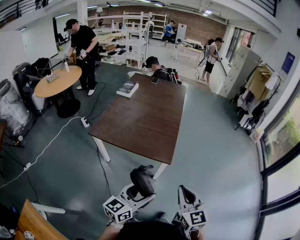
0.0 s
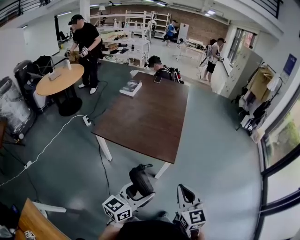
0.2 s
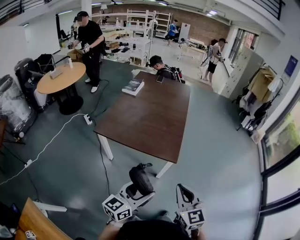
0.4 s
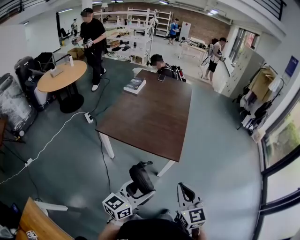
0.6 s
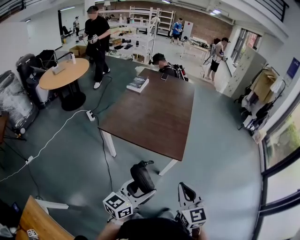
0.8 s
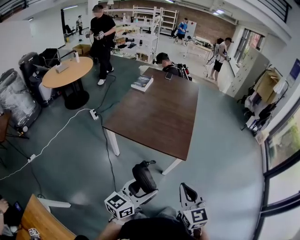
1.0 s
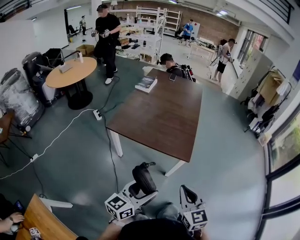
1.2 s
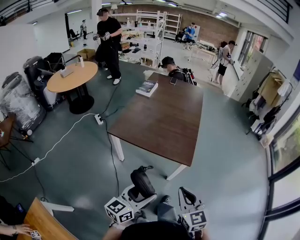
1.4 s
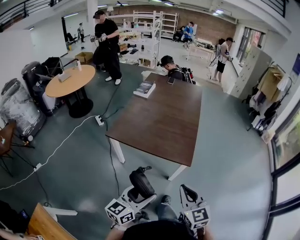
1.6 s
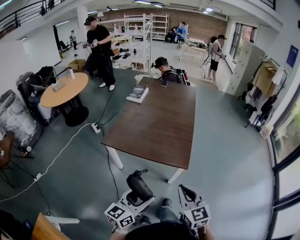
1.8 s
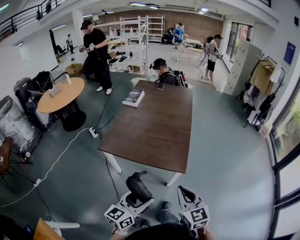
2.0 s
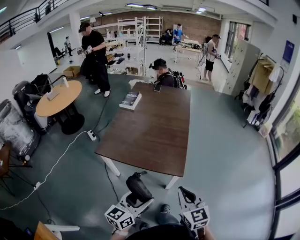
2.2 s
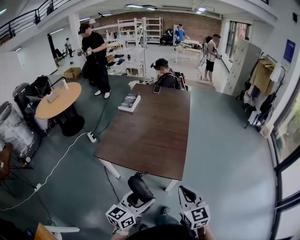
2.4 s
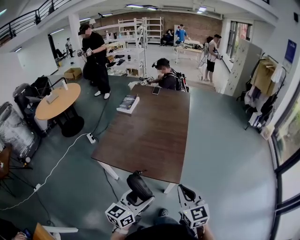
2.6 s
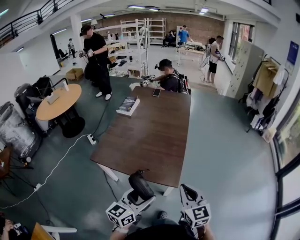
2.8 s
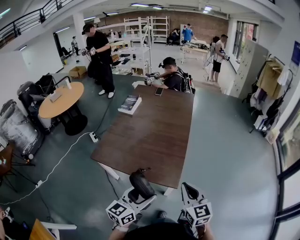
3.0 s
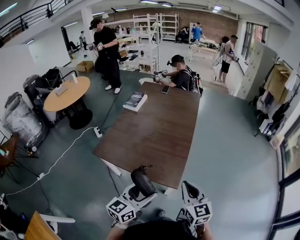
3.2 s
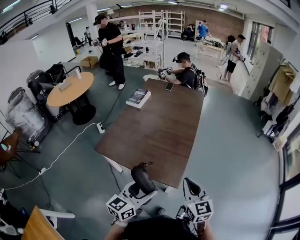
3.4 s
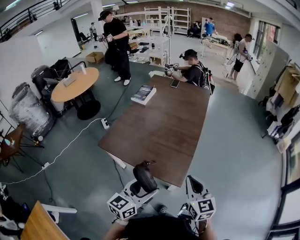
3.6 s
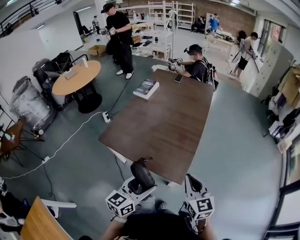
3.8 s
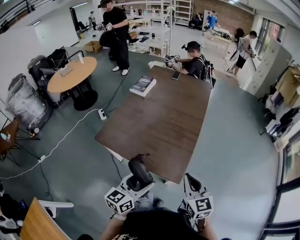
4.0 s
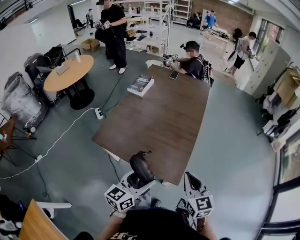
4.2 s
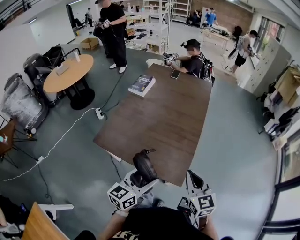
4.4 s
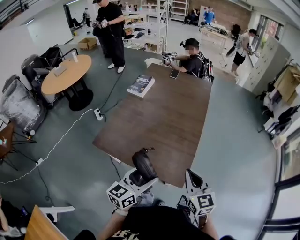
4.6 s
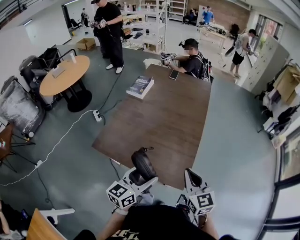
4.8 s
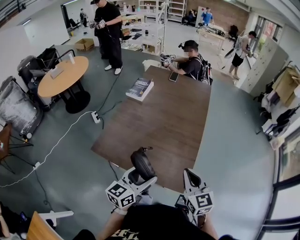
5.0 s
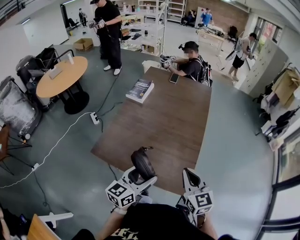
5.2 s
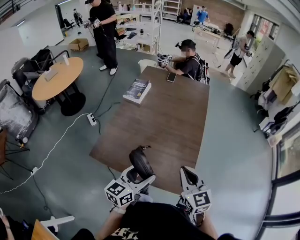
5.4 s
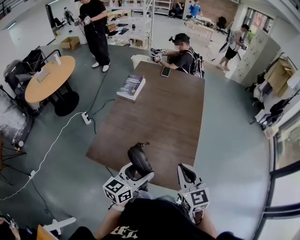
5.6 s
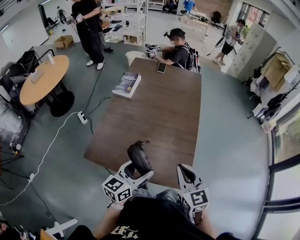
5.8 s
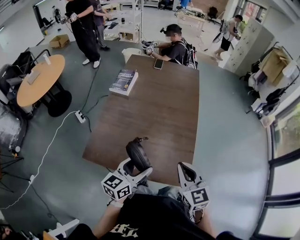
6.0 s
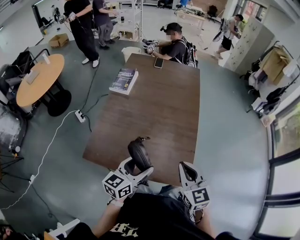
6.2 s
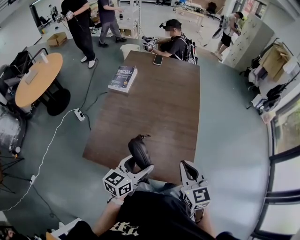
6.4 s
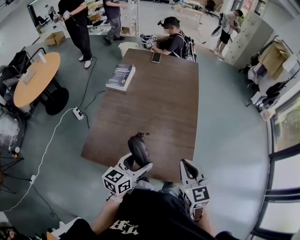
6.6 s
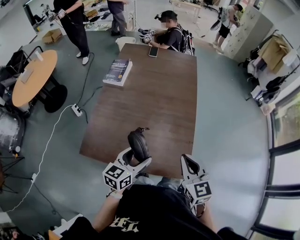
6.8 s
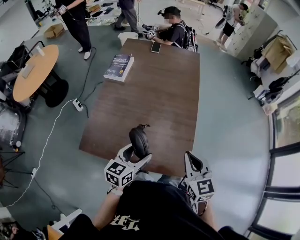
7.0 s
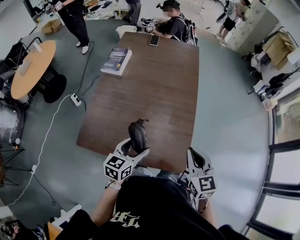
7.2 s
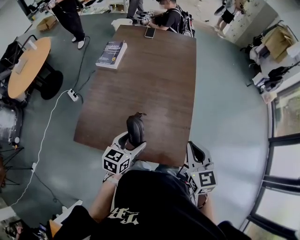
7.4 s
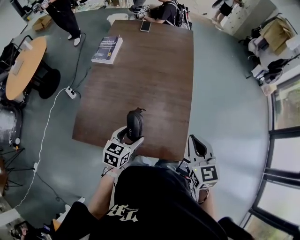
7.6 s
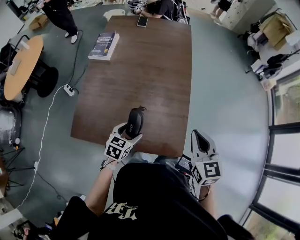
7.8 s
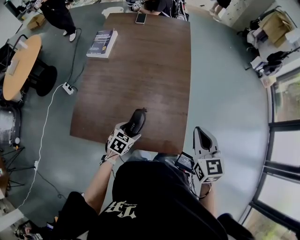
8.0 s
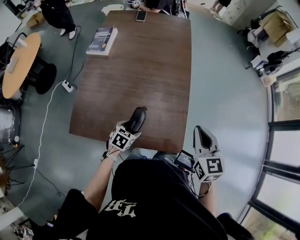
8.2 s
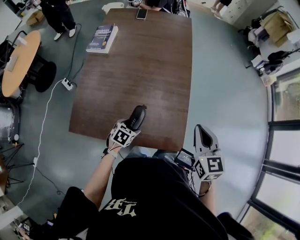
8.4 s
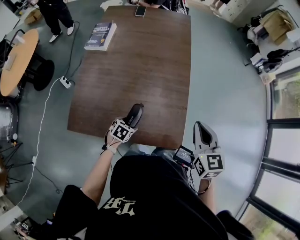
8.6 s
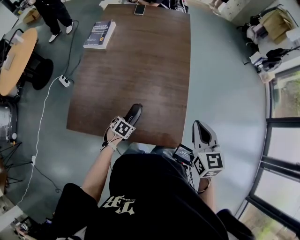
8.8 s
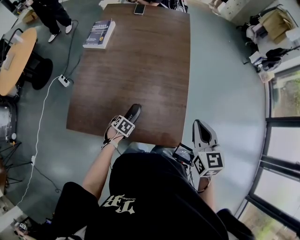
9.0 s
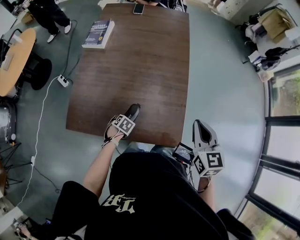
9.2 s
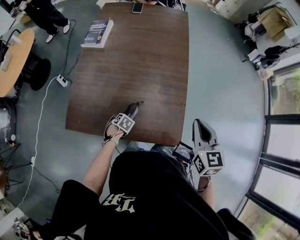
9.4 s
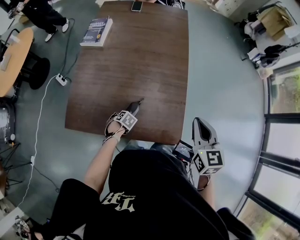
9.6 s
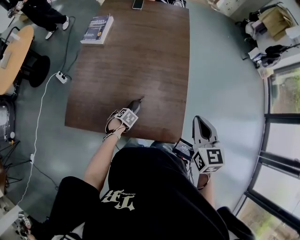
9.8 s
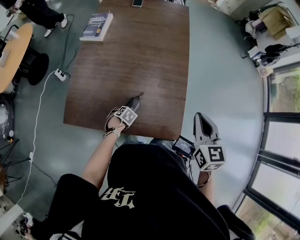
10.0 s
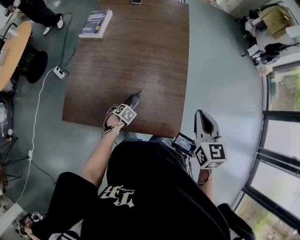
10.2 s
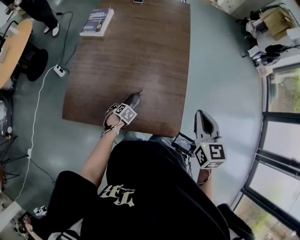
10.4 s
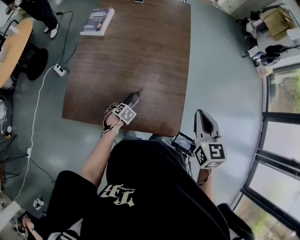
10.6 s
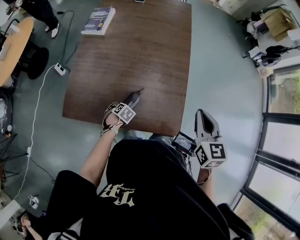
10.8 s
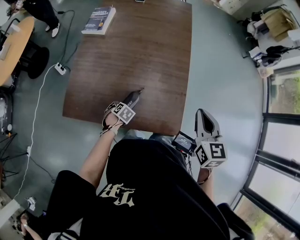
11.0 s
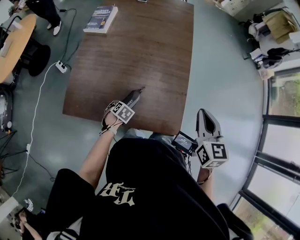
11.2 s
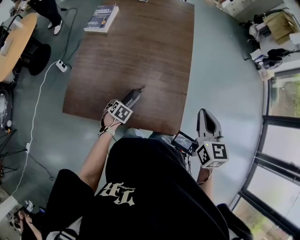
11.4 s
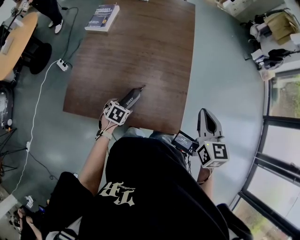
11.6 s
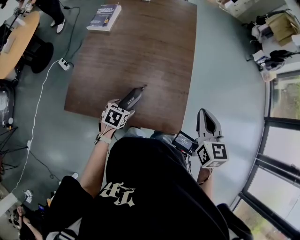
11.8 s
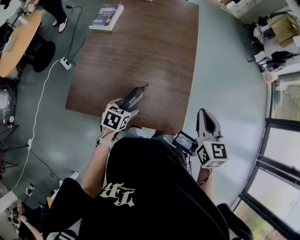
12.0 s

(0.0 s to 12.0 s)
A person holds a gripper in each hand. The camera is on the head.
0.0 s - 1.6 s: The grippers both shift to the left by about 15 cm.
1.6 s - 3.0 s: Both grippers travel together forward and to the right, roughly 25 cm.
3.0 s - 4.4 s: The two grippers go approximately 10 cm forward.
4.4 s - 6.0 s: The right gripper is displaced to the left and forward by approximately 15 cm, while the left gripper shifts some 20 cm forward and to the left.
6.0 s - 7.6 s: The right gripper shifts roughly 10 cm to the right and forward. Meanwhile the left gripper shifts about 15 cm downward and forward, and turns by approximately 30 degrees.
7.6 s - 9.0 s: The left gripper travels downward by roughly 20 cm, and angles its fingers downward, by approximately 40 degrees.
9.0 s - 10.4 s: The grippers make only small movements.
10.4 s - 12.0 s: The left gripper heads upward, covering some 20 cm, and swivels some 30 degrees.

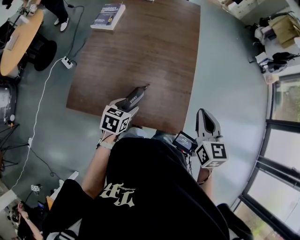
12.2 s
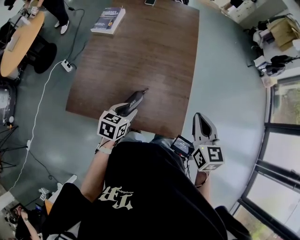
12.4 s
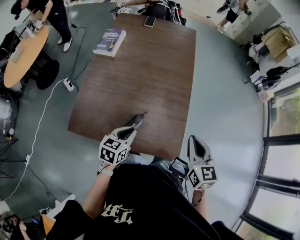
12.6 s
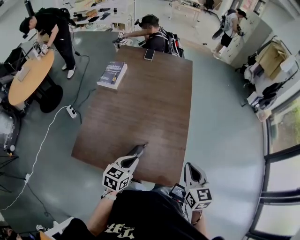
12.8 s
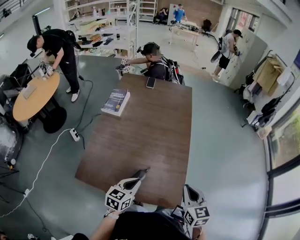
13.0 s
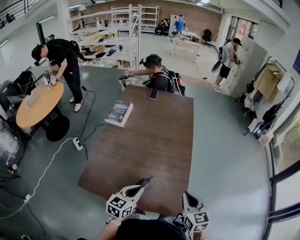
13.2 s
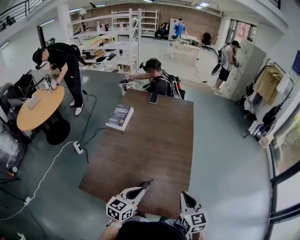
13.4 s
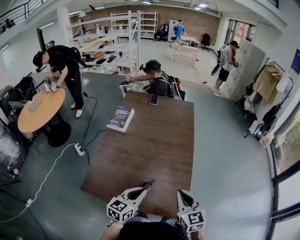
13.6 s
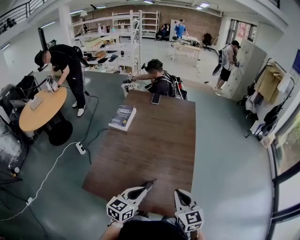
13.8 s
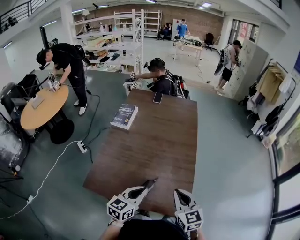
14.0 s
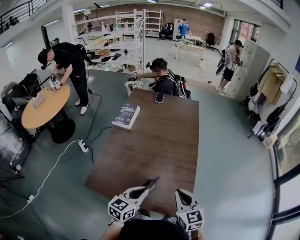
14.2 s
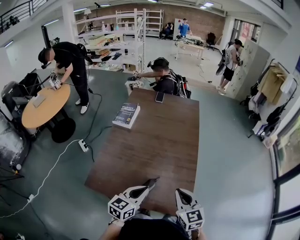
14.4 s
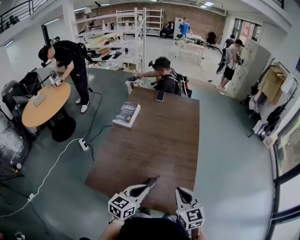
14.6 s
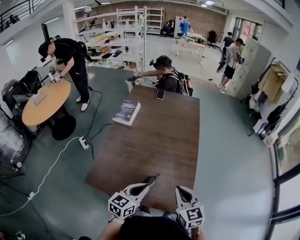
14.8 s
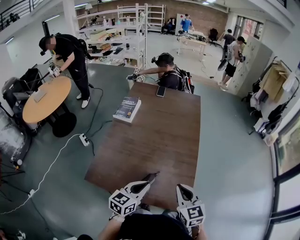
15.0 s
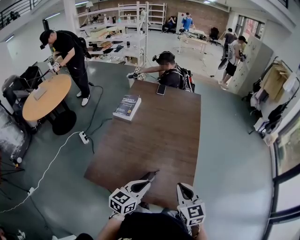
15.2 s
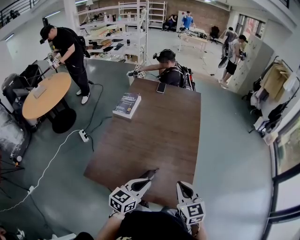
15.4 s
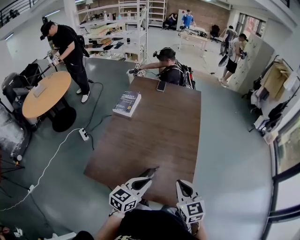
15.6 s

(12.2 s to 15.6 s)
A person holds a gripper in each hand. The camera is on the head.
12.2 s - 13.8 s: The left gripper moves upward, roughly 15 cm, tilts its fingers roughly 30 degrees upward, and closes its fingers, while the right gripper travels to the left by approximately 10 cm.
13.8 s - 15.6 s: There are only small adjustments of the grippers.

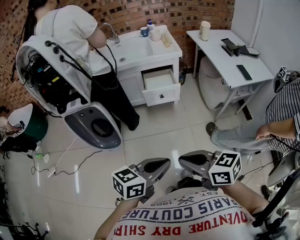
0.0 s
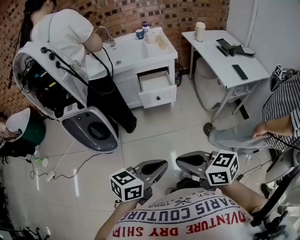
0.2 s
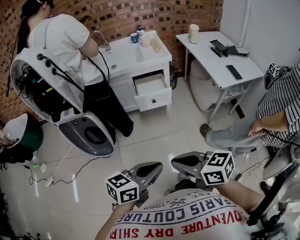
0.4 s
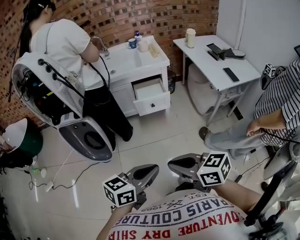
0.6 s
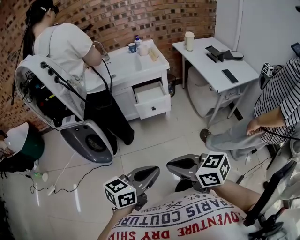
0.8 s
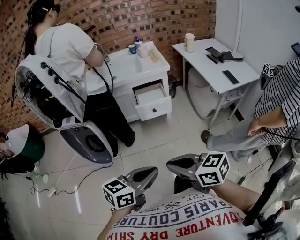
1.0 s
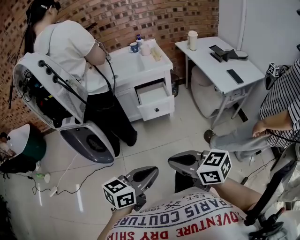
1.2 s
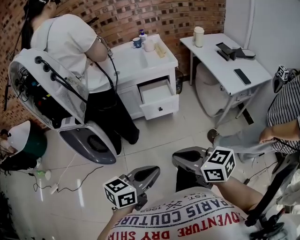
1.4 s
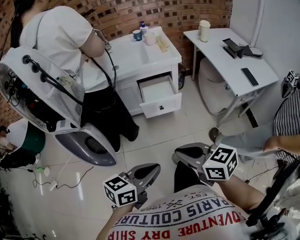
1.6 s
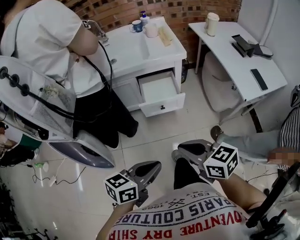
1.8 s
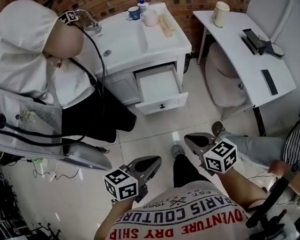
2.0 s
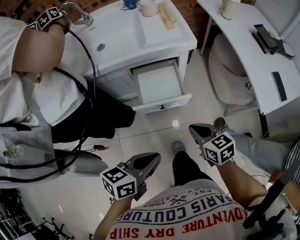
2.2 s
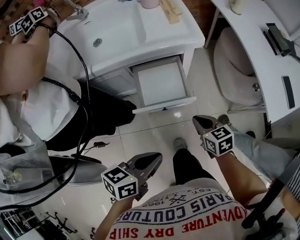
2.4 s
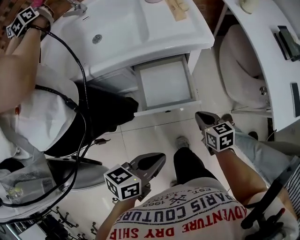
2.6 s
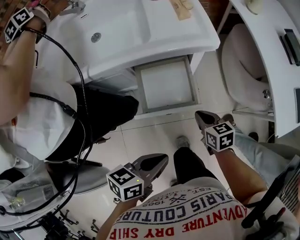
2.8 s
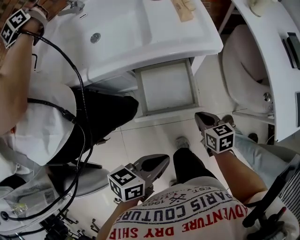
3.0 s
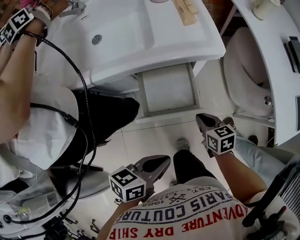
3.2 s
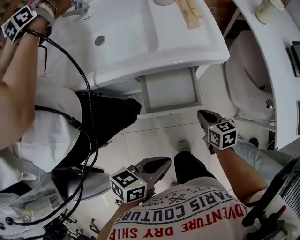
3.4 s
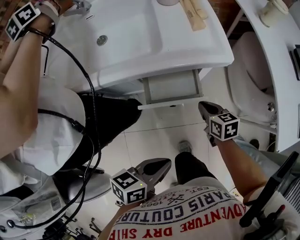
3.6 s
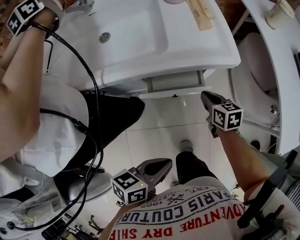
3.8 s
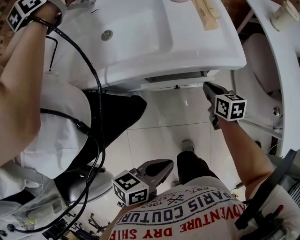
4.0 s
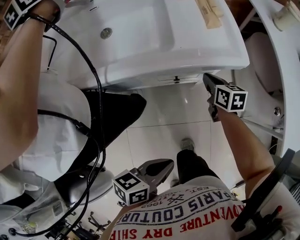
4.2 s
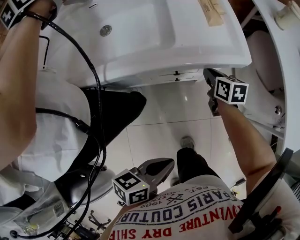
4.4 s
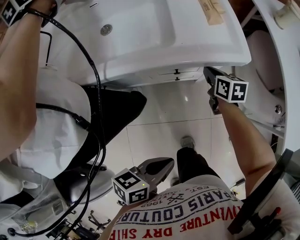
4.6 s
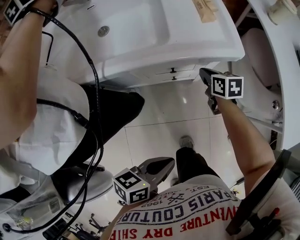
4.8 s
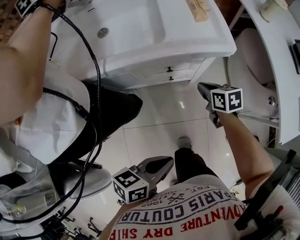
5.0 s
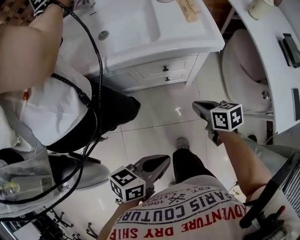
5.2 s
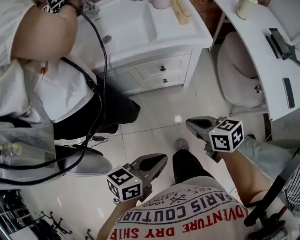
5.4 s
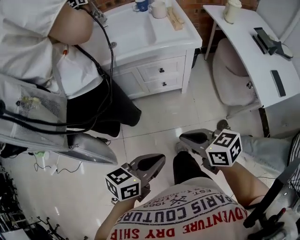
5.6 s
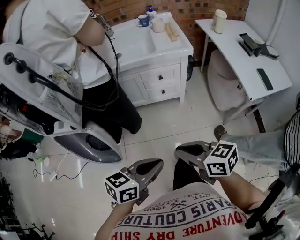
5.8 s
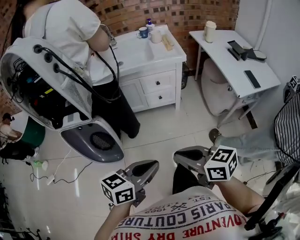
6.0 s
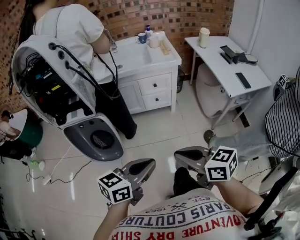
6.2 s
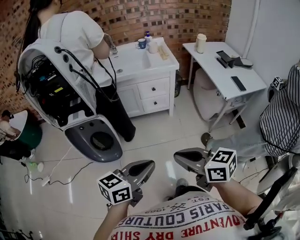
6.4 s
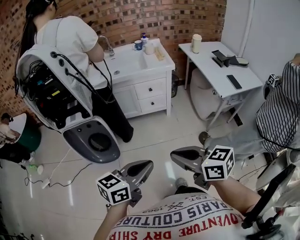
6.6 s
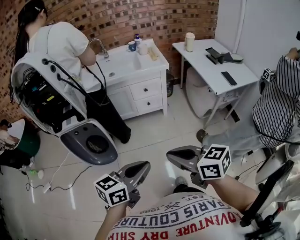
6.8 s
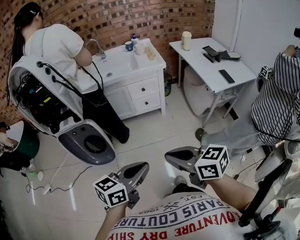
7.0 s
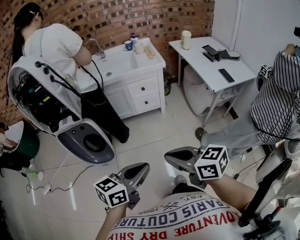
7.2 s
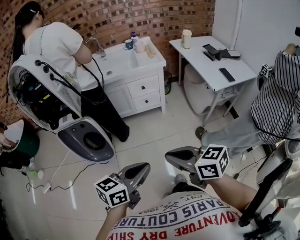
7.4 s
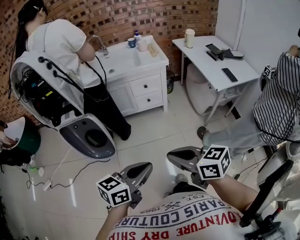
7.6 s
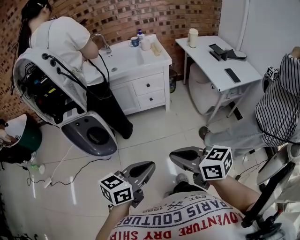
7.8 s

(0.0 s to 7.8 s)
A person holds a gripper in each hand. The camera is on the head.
0.0 s - 1.6 s: The two grippers go approximately 15 cm forward.
1.6 s - 3.2 s: The grippers both shift forward and downward by some 40 cm. The left gripper swivels some 30 degrees. The right gripper swivels some 30 degrees.
3.2 s - 4.6 s: The right gripper travels forward by roughly 20 cm.
4.6 s - 6.2 s: Both grippers are carried backward, roughly 60 cm. The left gripper moves upward, roughly 20 cm, and turns by about 40 degrees. The right gripper goes some 35 cm upward, and changes its angle by about 40 degrees.
6.2 s - 7.8 s: Both grippers travel together backward, roughly 5 cm.
